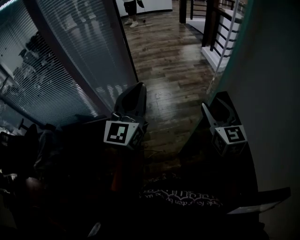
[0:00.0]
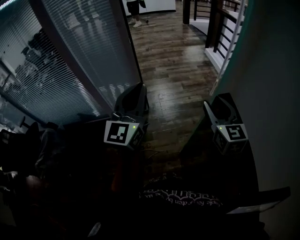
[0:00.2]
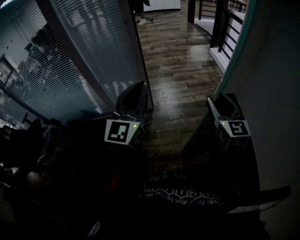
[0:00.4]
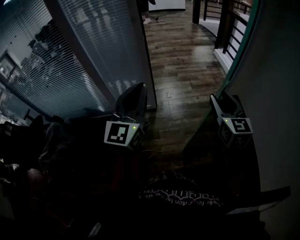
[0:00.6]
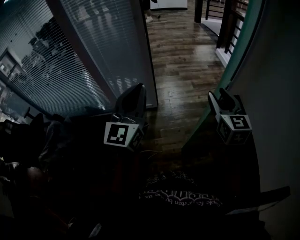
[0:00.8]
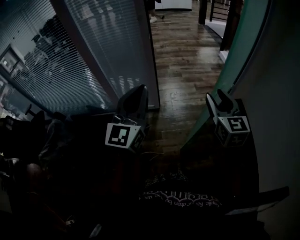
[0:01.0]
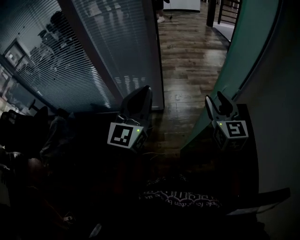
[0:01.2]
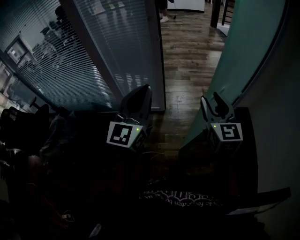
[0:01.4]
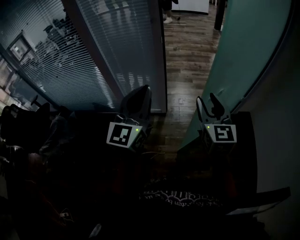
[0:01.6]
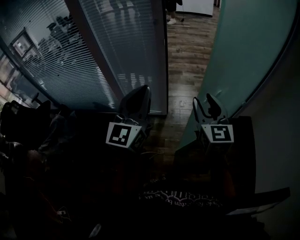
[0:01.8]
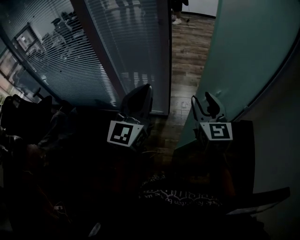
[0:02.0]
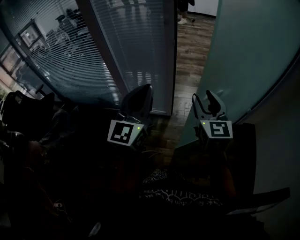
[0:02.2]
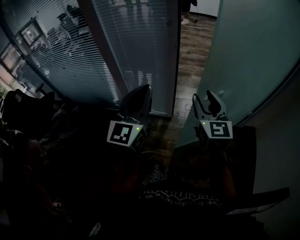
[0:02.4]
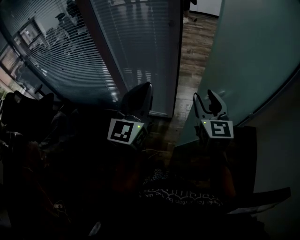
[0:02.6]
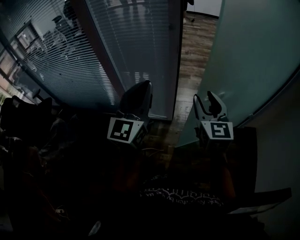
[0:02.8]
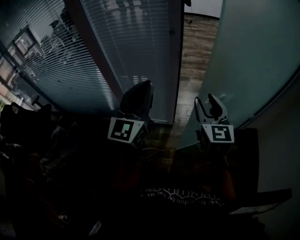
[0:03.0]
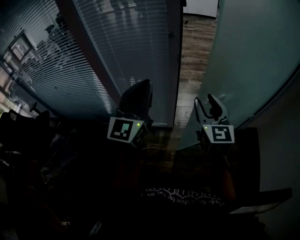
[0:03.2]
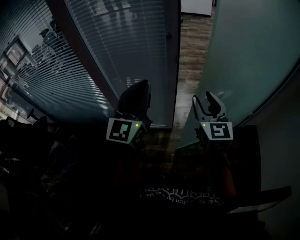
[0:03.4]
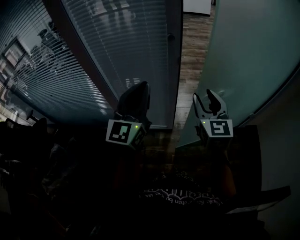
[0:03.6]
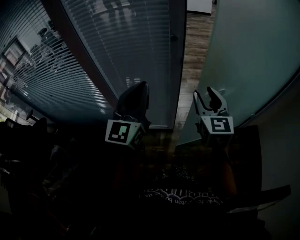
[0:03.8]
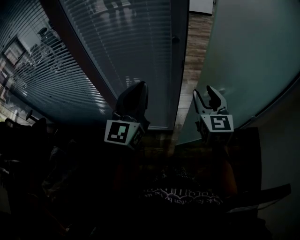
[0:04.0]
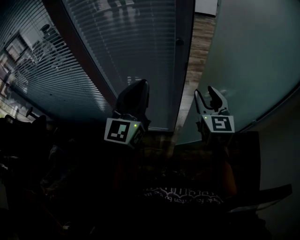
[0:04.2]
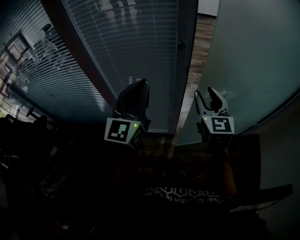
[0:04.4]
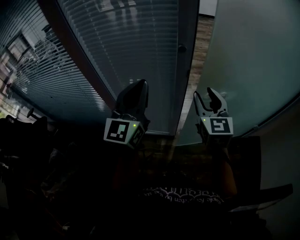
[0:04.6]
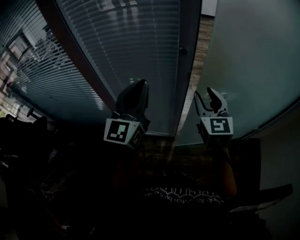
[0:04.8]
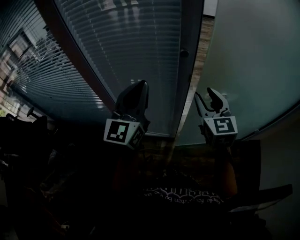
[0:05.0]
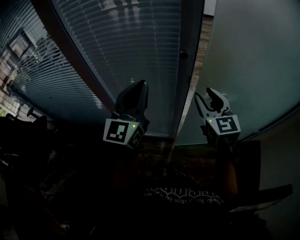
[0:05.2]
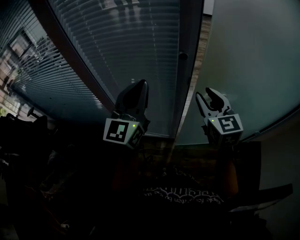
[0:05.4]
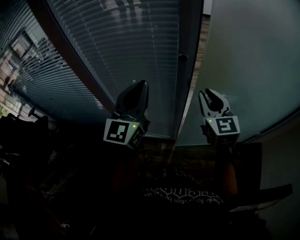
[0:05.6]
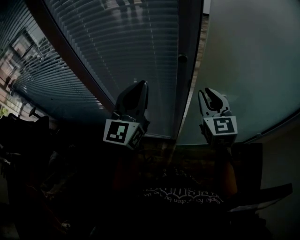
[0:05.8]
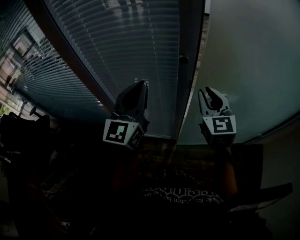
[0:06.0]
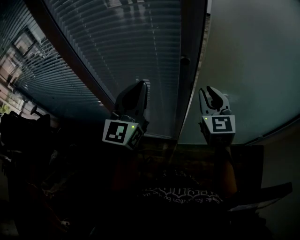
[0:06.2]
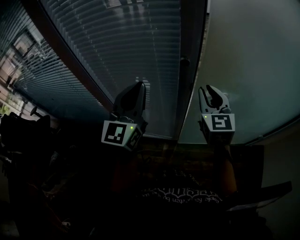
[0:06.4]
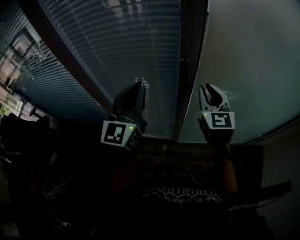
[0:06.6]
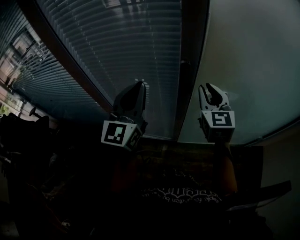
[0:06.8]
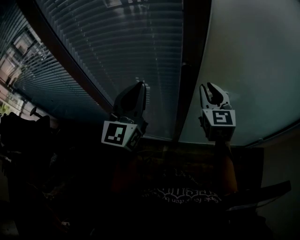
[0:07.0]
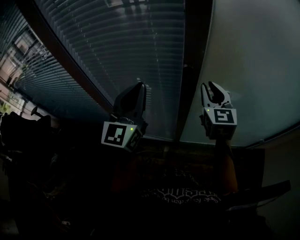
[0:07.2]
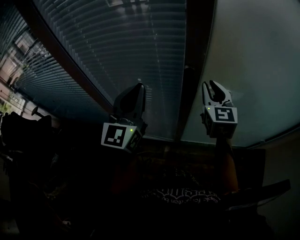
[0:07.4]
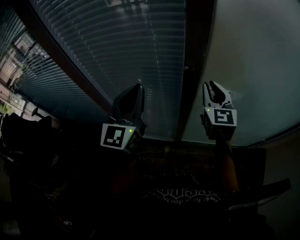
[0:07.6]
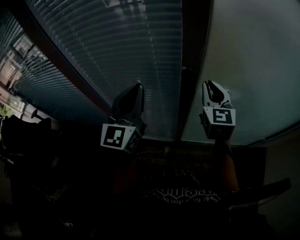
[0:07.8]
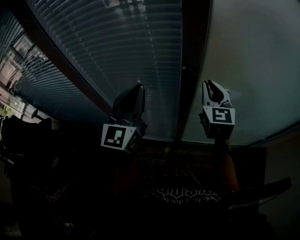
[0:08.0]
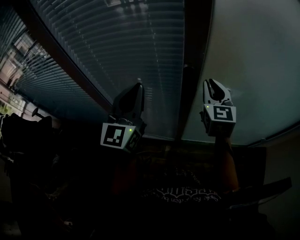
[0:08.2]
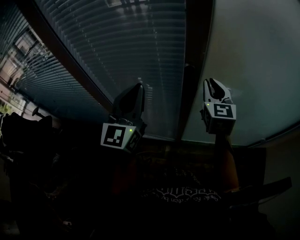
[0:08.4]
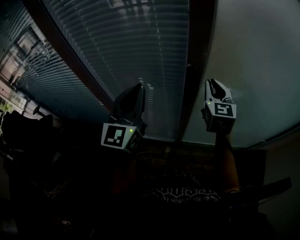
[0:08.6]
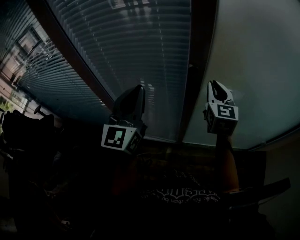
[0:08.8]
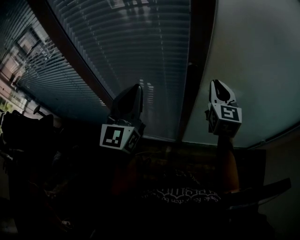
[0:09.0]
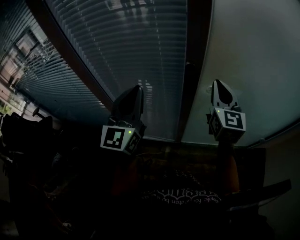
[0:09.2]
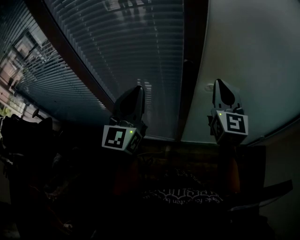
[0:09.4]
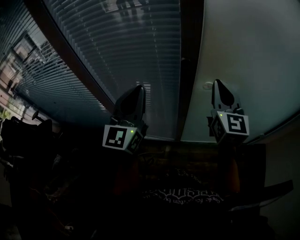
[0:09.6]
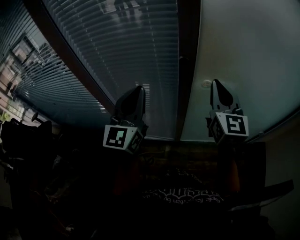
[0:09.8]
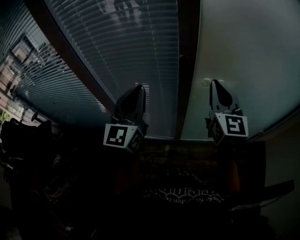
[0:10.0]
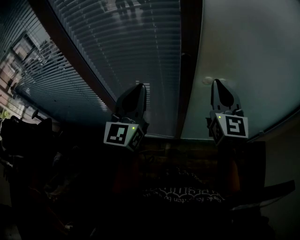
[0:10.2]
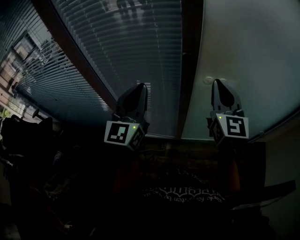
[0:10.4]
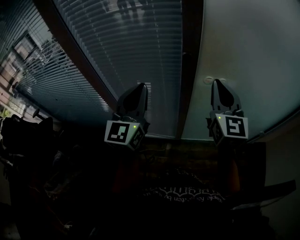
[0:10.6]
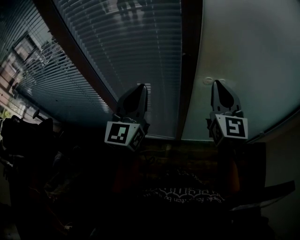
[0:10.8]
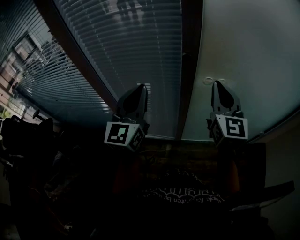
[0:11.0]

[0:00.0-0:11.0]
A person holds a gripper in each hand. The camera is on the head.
0:00.0 to 0:01.6: Both grippers travel together to the left and forward, about 20 cm.
0:01.6 to 0:03.2: The two grippers go about 20 cm forward and to the left.
0:03.2 to 0:04.8: The grippers both shift forward by some 15 cm.
0:04.8 to 0:06.2: The right gripper shifts some 5 cm forward, and closes.
0:06.2 to 0:07.8: The left gripper shifts by approximately 5 cm. Meanwhile the right gripper heads forward, covering some 10 cm.
0:07.8 to 0:09.4: Both grippers move backward, roughly 5 cm.
0:09.4 to 0:11.0: The right gripper shifts about 5 cm backward.

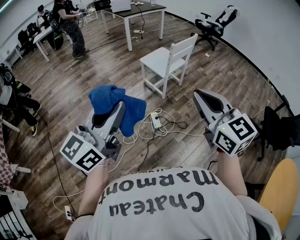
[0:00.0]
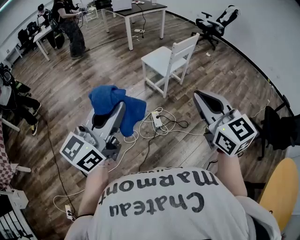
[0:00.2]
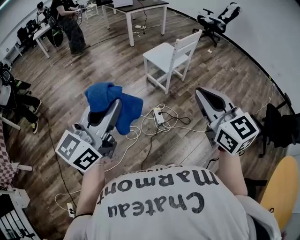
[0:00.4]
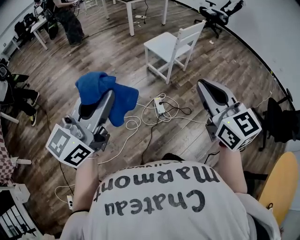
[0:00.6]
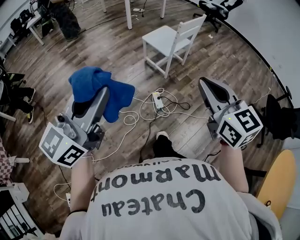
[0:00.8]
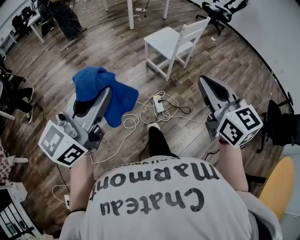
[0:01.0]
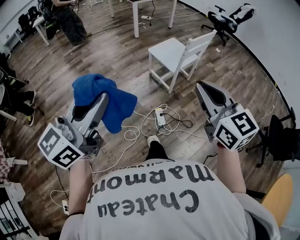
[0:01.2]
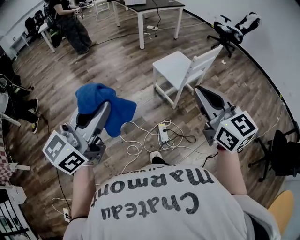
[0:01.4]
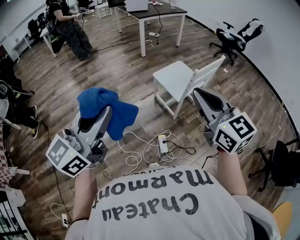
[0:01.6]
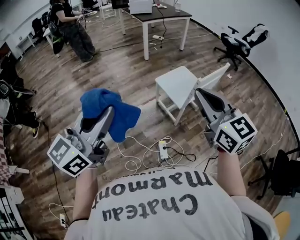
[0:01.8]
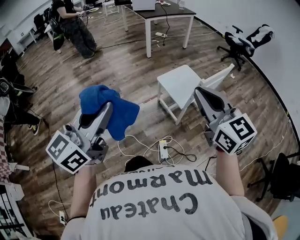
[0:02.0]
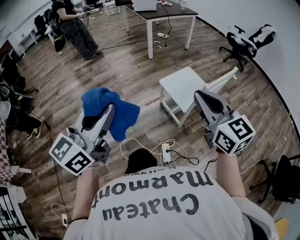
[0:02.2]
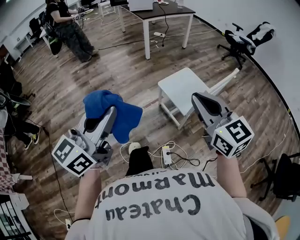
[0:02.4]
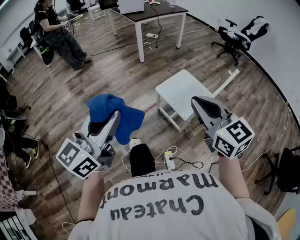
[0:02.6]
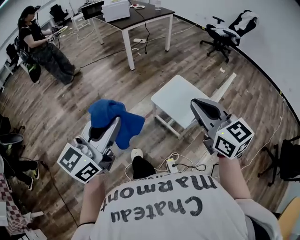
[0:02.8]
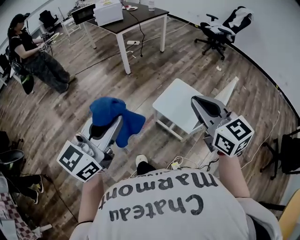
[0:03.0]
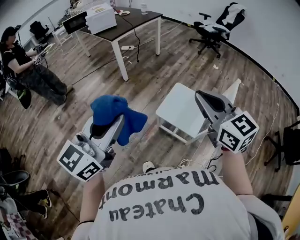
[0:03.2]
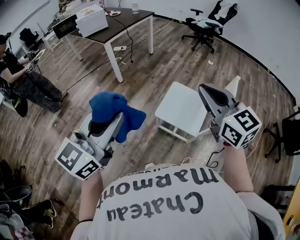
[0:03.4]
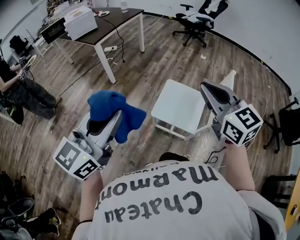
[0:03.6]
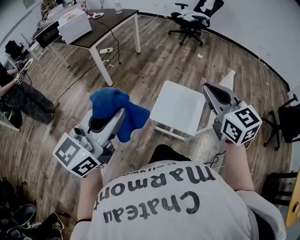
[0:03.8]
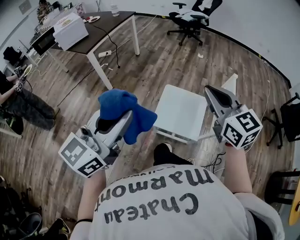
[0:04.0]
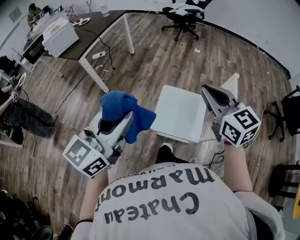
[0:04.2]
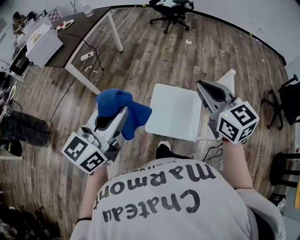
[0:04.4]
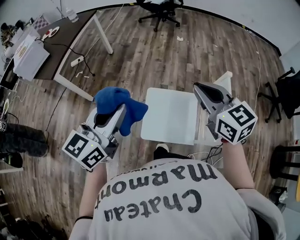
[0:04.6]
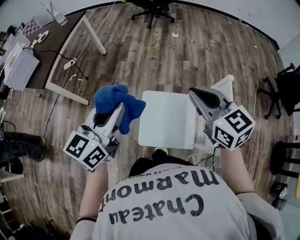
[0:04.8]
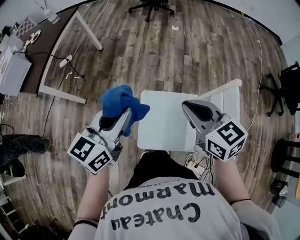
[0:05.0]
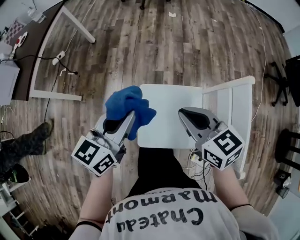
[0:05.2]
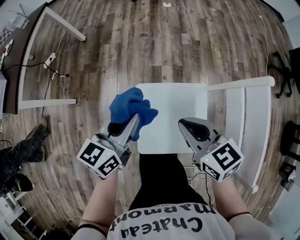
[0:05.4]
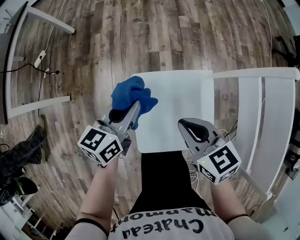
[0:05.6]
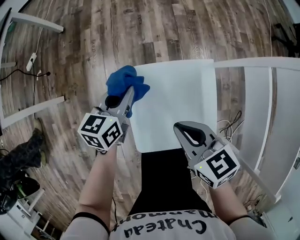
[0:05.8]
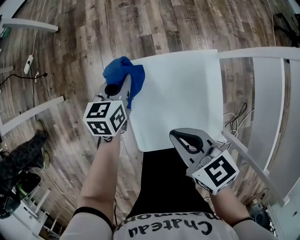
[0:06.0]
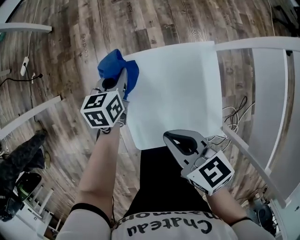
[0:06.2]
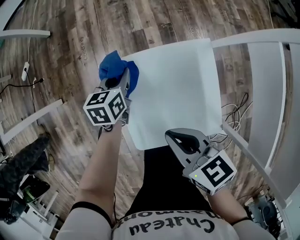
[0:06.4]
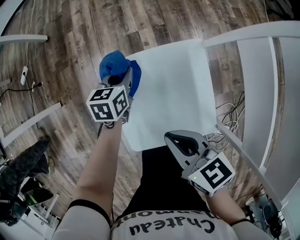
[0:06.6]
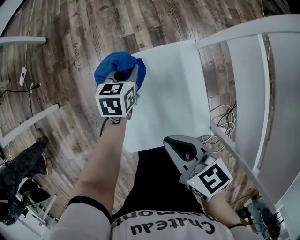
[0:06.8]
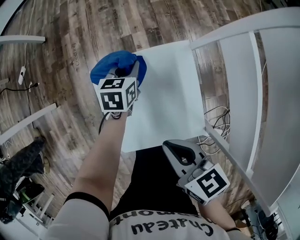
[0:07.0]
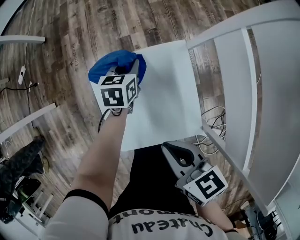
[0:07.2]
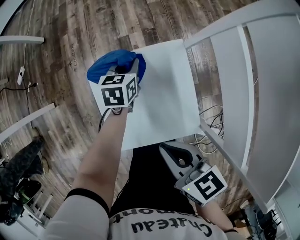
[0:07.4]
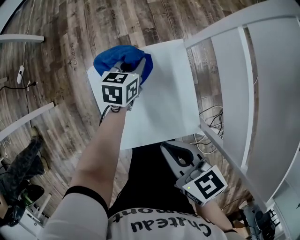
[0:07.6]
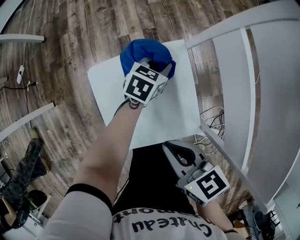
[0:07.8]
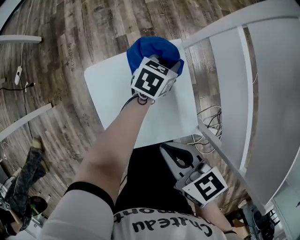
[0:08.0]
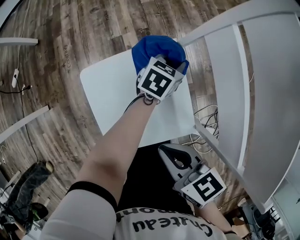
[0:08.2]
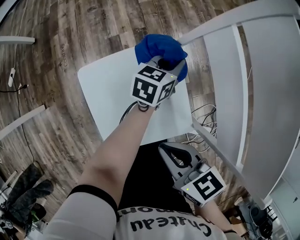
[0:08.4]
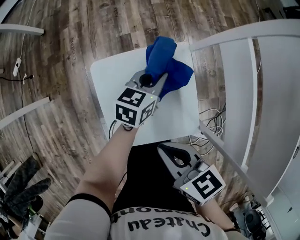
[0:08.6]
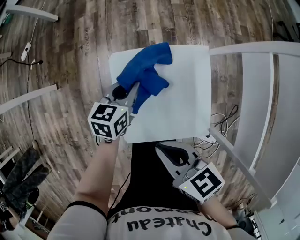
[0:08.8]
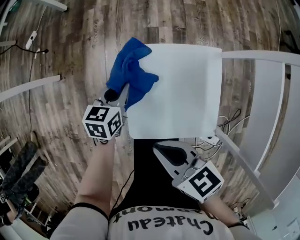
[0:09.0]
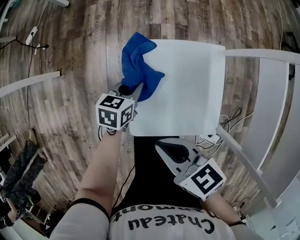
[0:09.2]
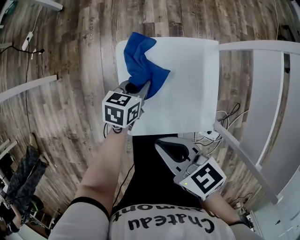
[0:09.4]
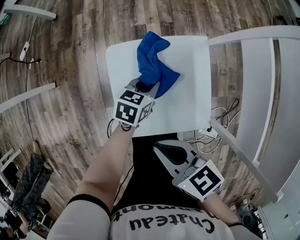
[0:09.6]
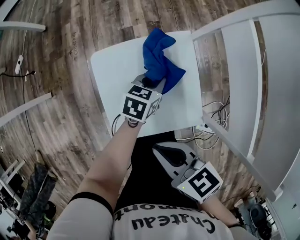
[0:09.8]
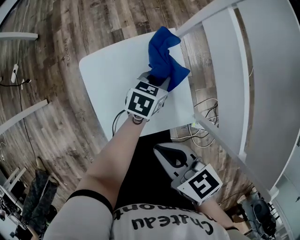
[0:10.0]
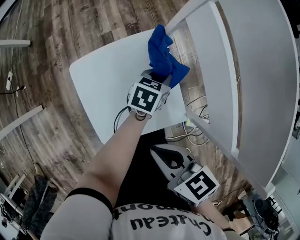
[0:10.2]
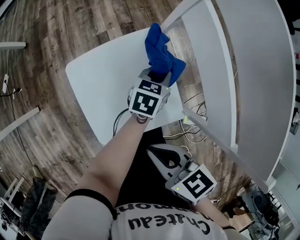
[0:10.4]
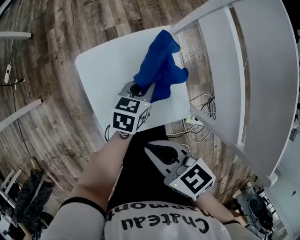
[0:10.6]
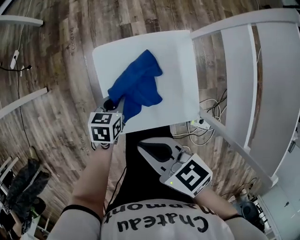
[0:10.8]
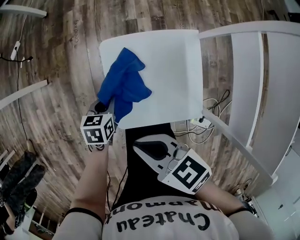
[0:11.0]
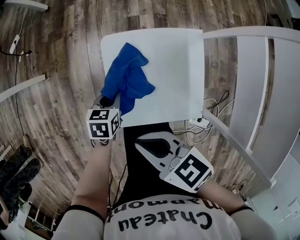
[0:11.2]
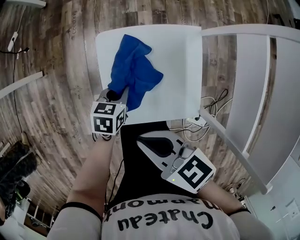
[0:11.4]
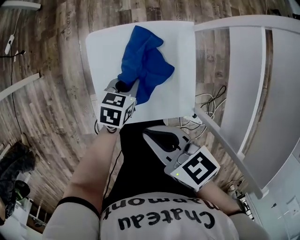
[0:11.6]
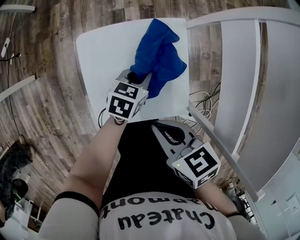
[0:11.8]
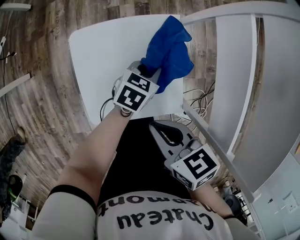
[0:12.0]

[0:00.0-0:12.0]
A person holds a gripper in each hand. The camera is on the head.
0:00.0 to 0:01.6: The grippers both shift forward by approximately 25 cm.
0:01.6 to 0:03.0: Both grippers travel together forward, some 35 cm.
0:03.0 to 0:04.4: The left gripper moves approximately 35 cm, and changes its angle by about 30 degrees, while the right gripper moves about 25 cm, and swivels about 30 degrees.
0:04.4 to 0:06.0: The right gripper shifts some 40 cm downward, and rotates some 40 degrees, while the left gripper goes some 60 cm downward and forward, and tilts its fingers roughly 40 degrees downward.
0:06.0 to 0:07.6: The right gripper heads to the right and backward, covering about 10 cm. The left gripper shifts approximately 20 cm to the right.
0:07.6 to 0:09.0: The left gripper moves roughly 20 cm; the right gripper ends up roughly 10 cm from where it was, and rotates roughly 20 degrees.
0:09.0 to 0:10.4: The left gripper ends up some 35 cm from where it was, and turns by approximately 30 degrees, while the right gripper changes place by about 15 cm, and turns by some 20 degrees.
0:10.4 to 0:12.0: The right gripper reaches some 5 cm upward, then returns.

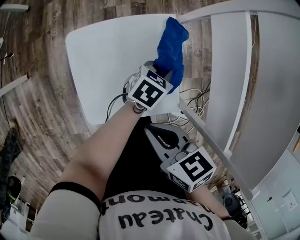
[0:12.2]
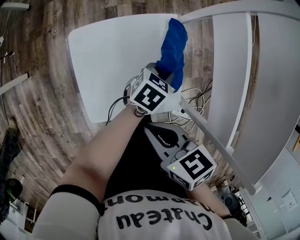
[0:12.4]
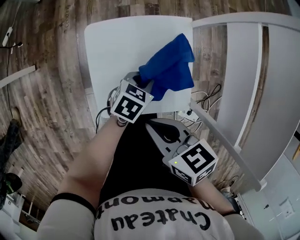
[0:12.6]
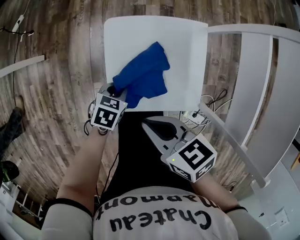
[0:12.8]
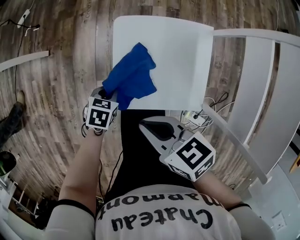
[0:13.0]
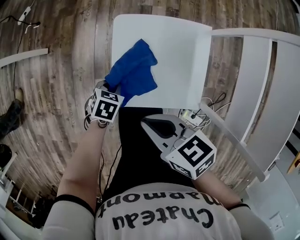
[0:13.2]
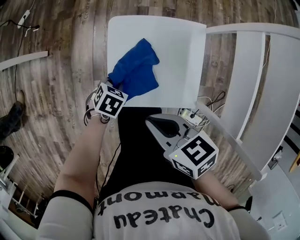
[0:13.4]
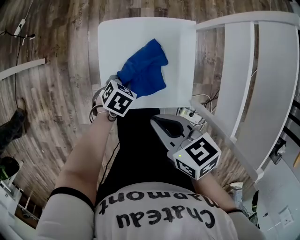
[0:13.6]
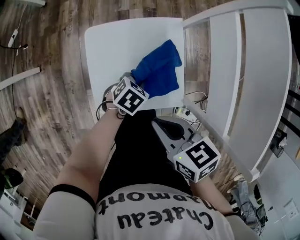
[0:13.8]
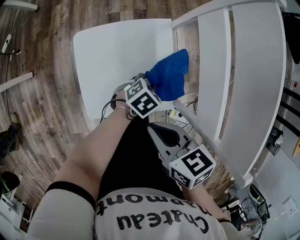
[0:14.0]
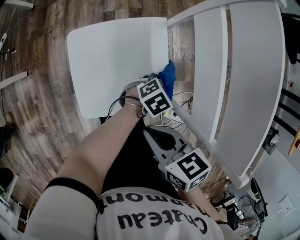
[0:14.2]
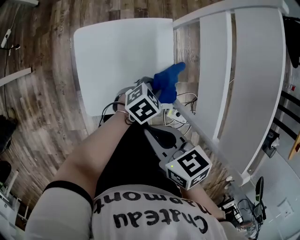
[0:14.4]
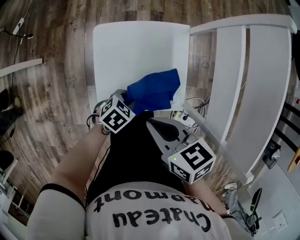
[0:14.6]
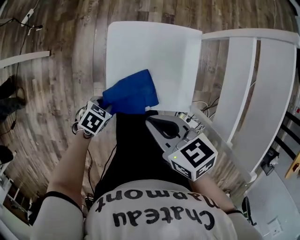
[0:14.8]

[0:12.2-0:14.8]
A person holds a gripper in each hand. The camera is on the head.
0:12.2 to 0:13.4: The left gripper shifts by roughly 30 cm, and angles its fingers downward, by about 30 degrees. Meanwhile the right gripper changes place by roughly 10 cm.
